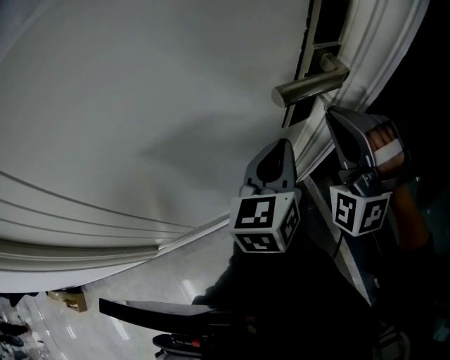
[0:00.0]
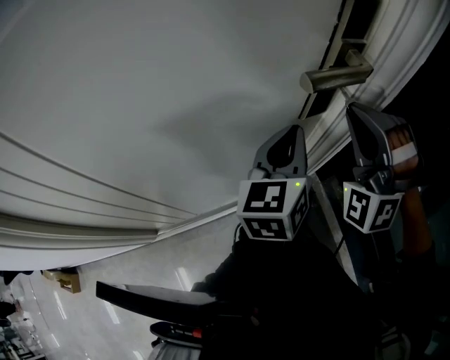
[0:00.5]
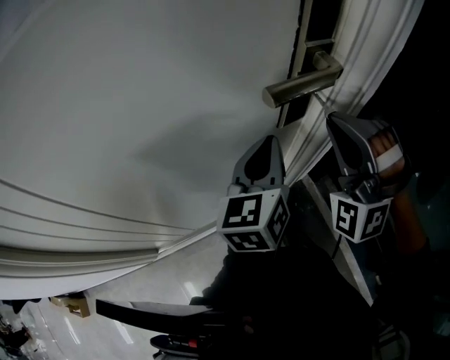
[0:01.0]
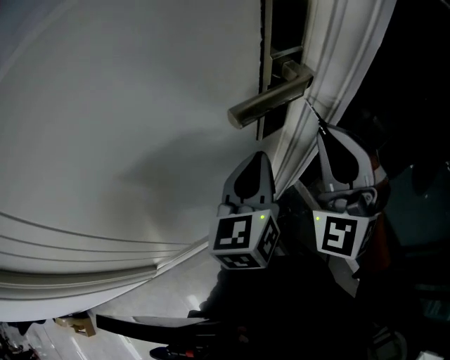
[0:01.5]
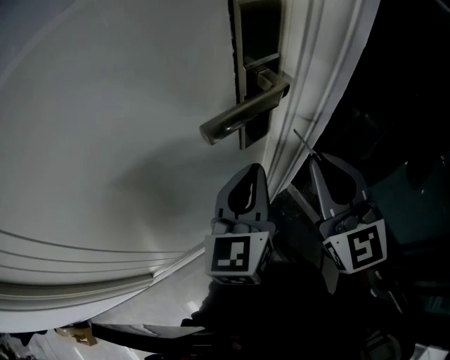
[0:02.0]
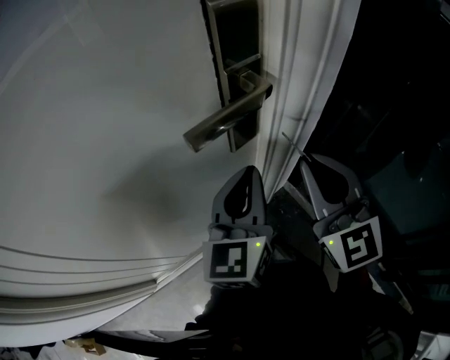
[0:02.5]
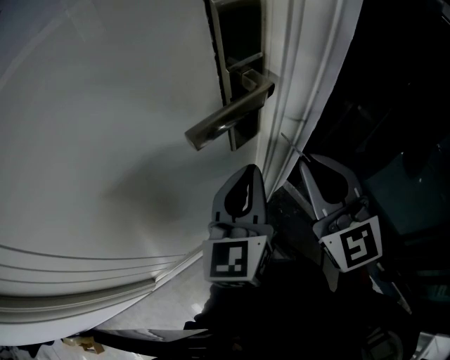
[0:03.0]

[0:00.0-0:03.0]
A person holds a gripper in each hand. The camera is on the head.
0:00.0 to 0:01.5: The right gripper changes its angle by roughly 30 degrees.
0:01.5 to 0:03.0: The right gripper rolls clockwise, seen from behind, by approximately 40 degrees.

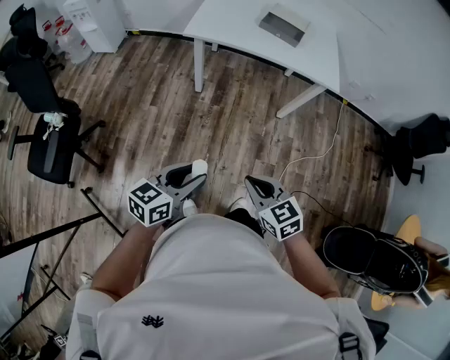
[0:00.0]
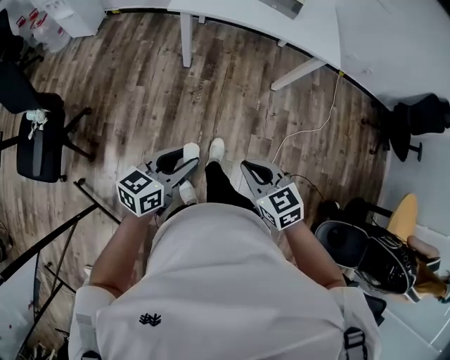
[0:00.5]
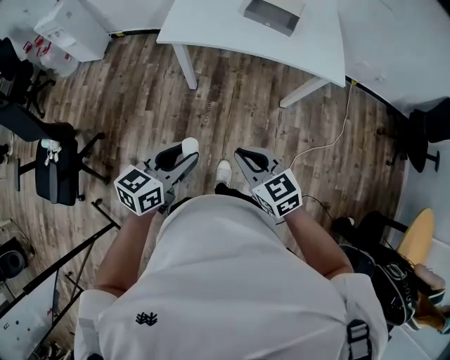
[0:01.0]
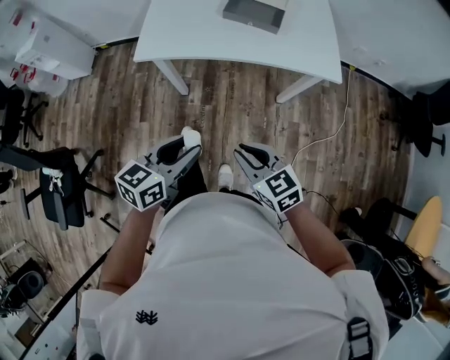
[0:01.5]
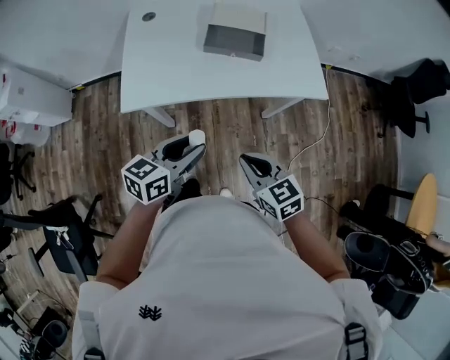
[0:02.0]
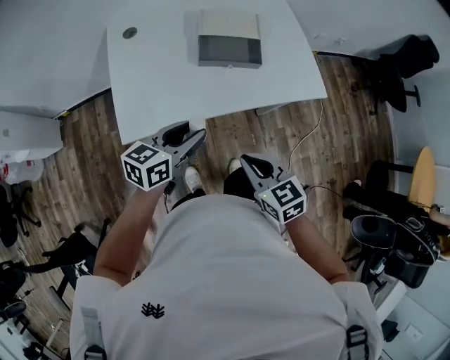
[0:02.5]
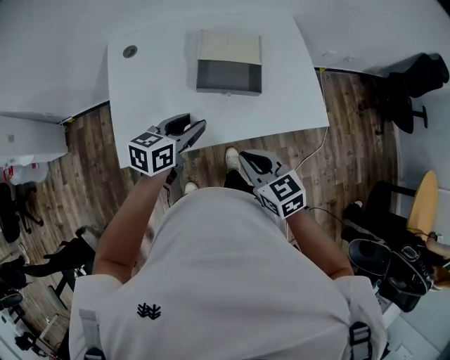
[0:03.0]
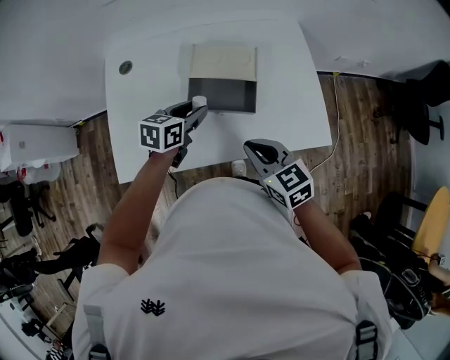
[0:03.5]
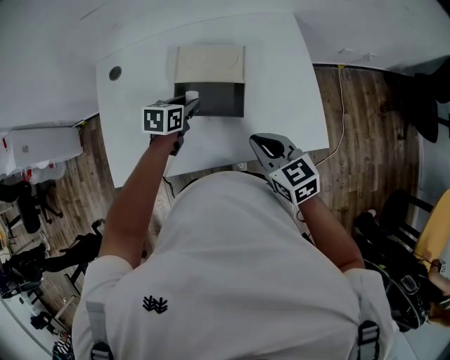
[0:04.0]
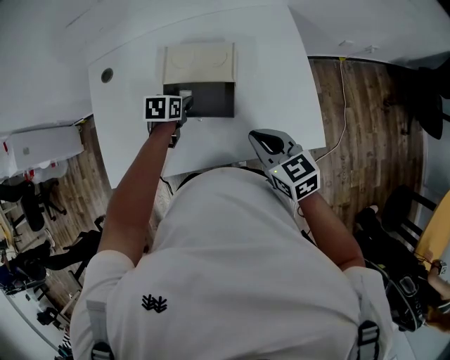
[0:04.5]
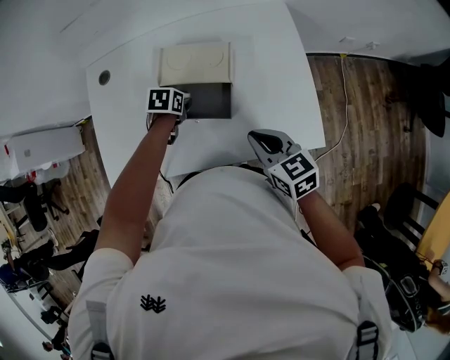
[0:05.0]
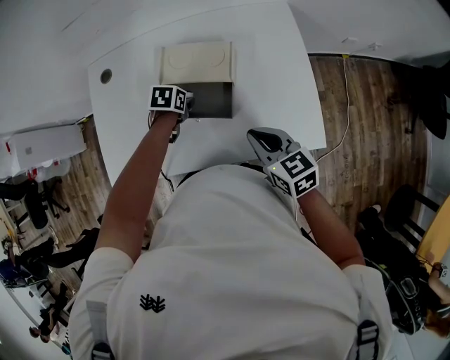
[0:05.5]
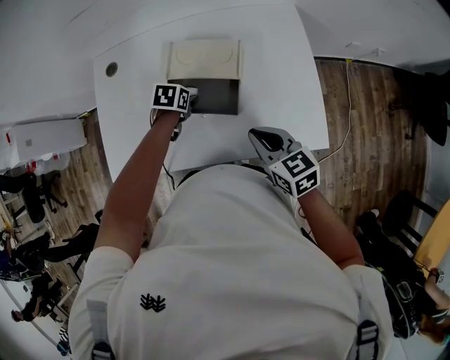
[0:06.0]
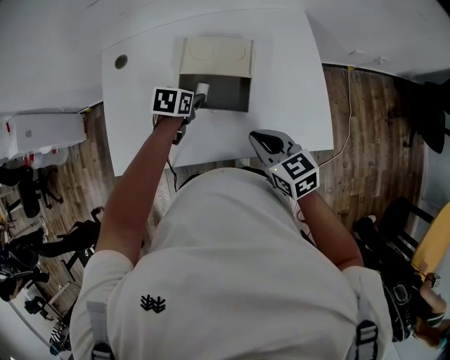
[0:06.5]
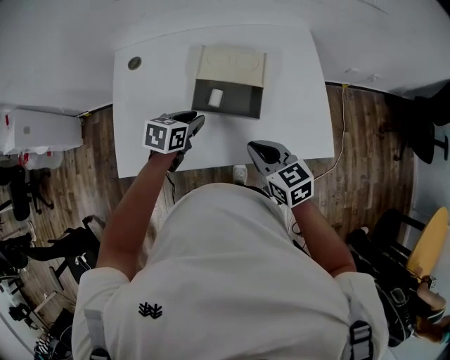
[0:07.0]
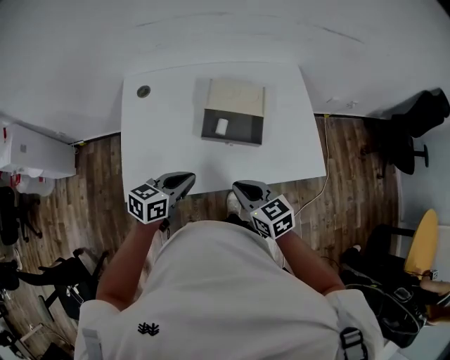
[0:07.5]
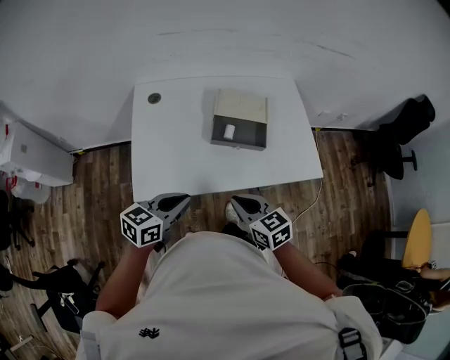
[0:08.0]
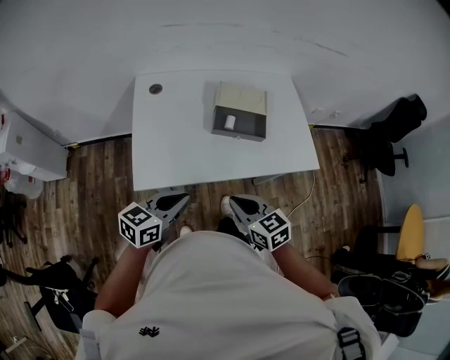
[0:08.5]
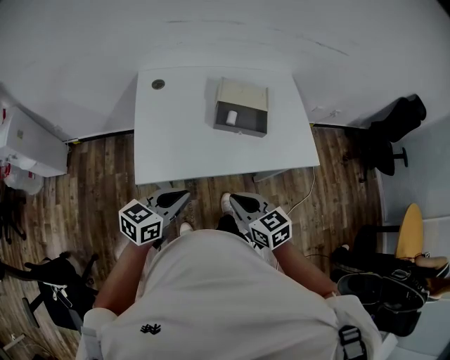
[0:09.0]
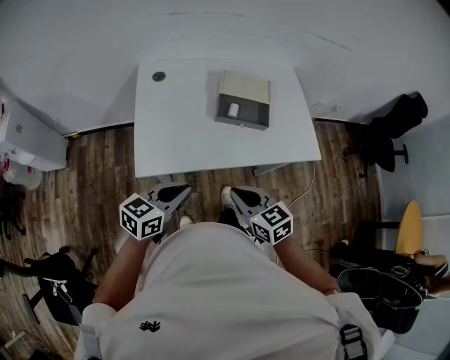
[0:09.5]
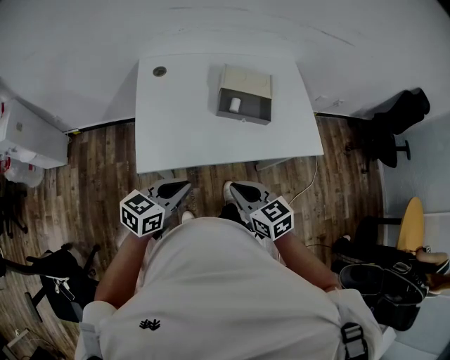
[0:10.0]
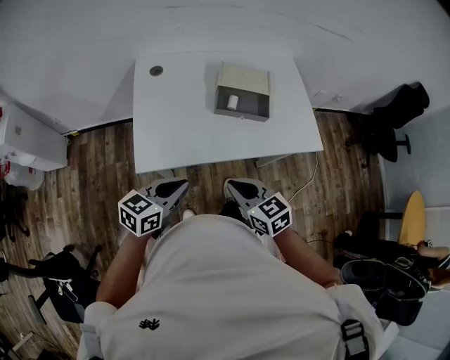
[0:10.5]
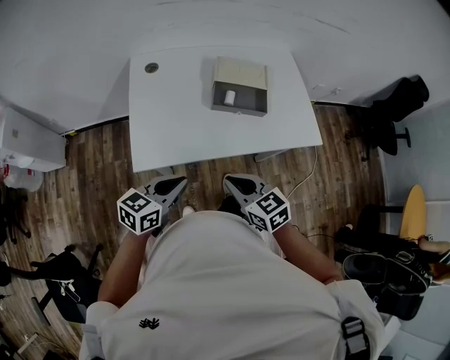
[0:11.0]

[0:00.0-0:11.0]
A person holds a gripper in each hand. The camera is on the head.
0:00.0 to 0:02.0: The grippers both shift forward by roughly 40 cm.
0:02.0 to 0:03.5: Both grippers move forward, about 30 cm.
0:03.5 to 0:05.5: The right gripper shifts some 10 cm to the right. The left gripper is displaced downward and forward by about 15 cm, and tips its fingers downward by about 40 degrees.
0:05.5 to 0:07.5: The left gripper shifts roughly 25 cm backward and upward, points its fingers roughly 50 degrees further upward, and closes; the right gripper travels to the left and backward by some 15 cm.
0:07.5 to 0:09.0: Both grippers move backward and to the left, about 15 cm.
0:09.0 to 0:11.0: The grippers move only a little.

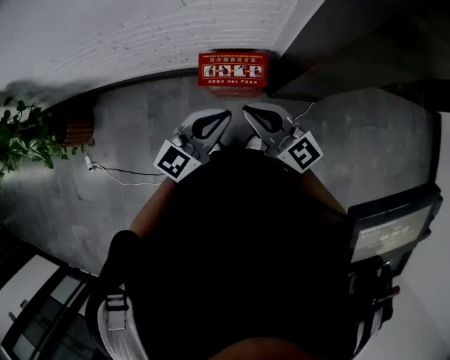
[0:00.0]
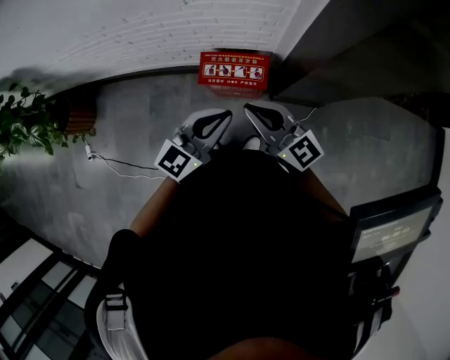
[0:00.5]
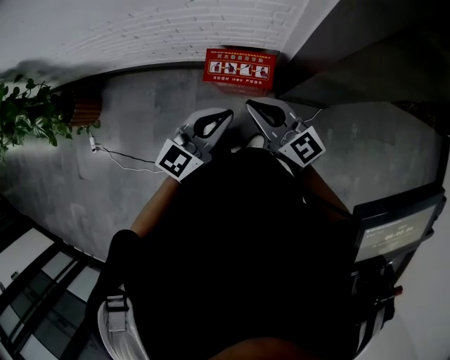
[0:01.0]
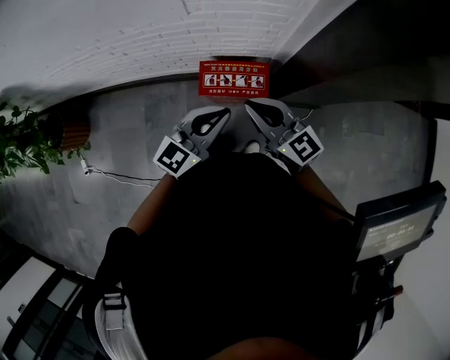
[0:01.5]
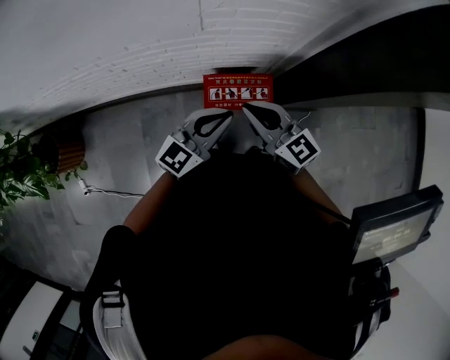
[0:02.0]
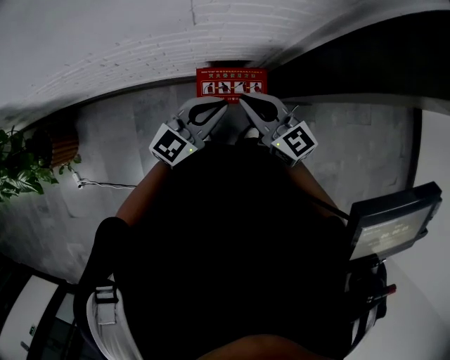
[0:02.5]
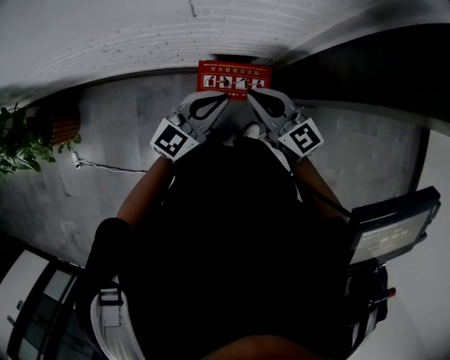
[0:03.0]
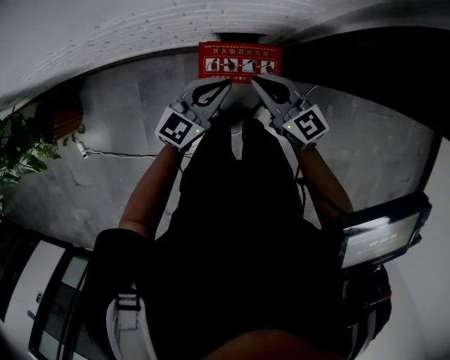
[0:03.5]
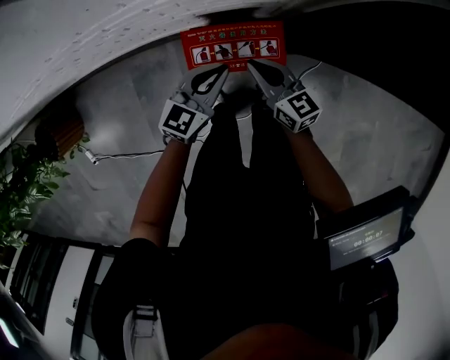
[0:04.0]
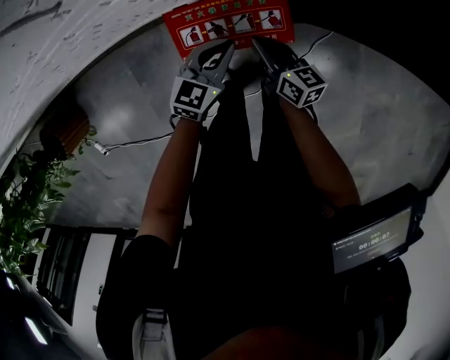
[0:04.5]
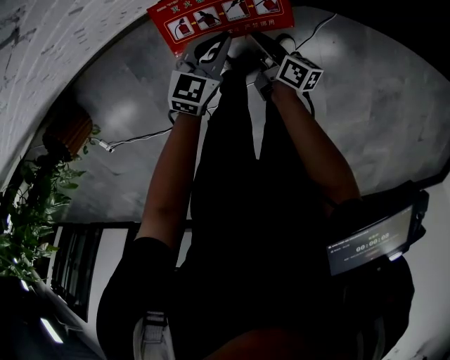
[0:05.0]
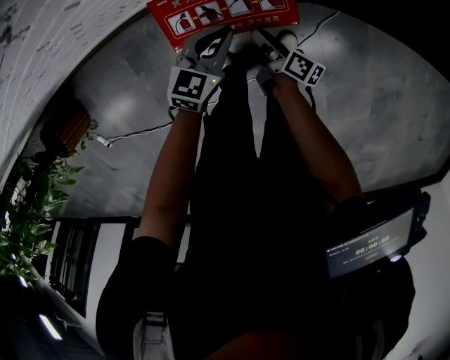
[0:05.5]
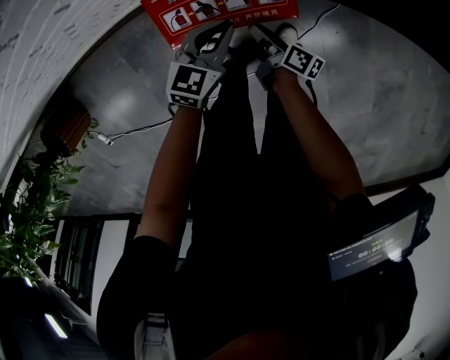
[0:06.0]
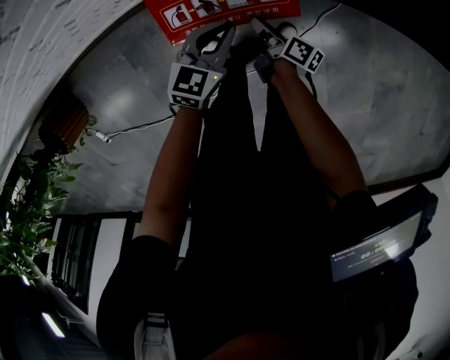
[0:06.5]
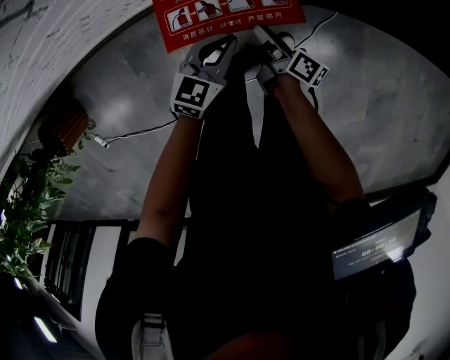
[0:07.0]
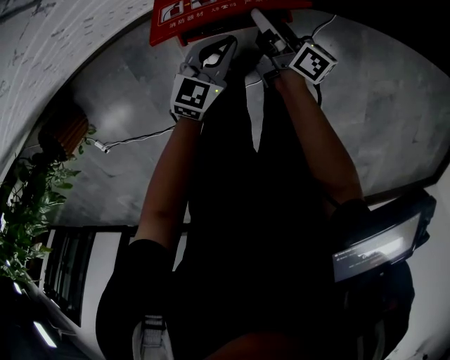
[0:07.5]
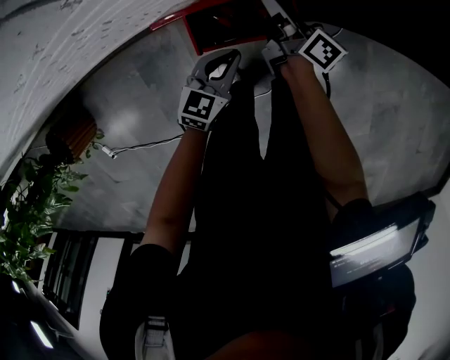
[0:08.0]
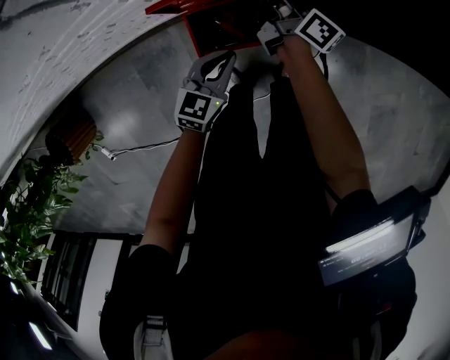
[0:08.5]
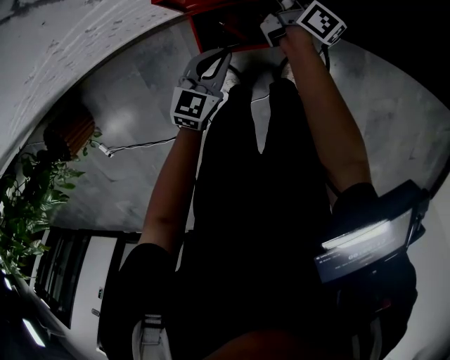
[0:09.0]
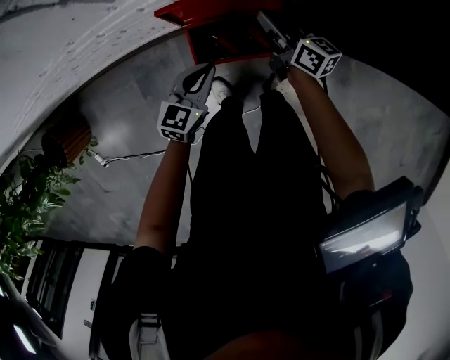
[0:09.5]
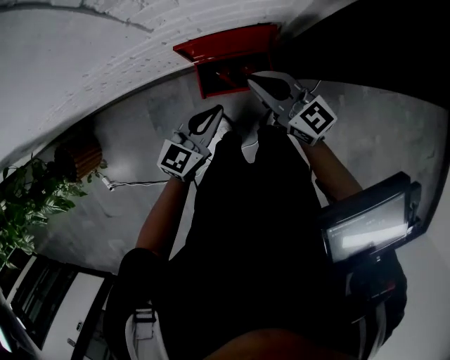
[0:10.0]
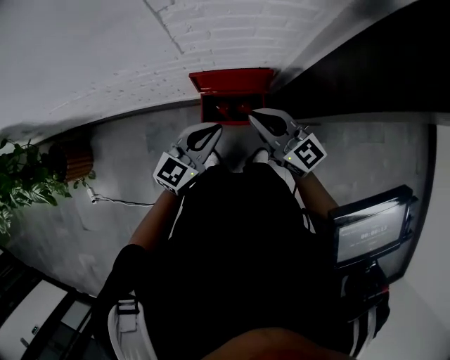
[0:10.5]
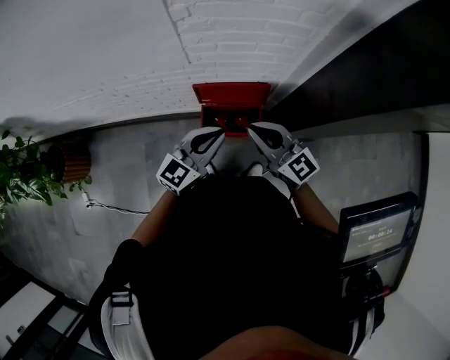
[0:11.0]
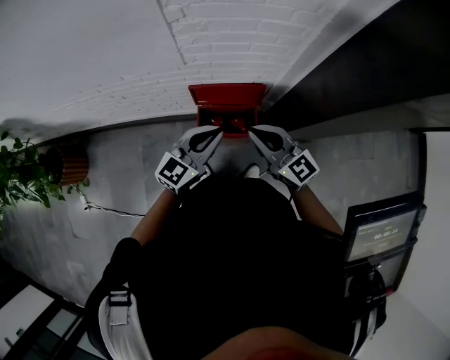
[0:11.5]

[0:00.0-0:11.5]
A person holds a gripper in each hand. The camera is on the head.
0:00.0 to 0:02.0: The grippers both shift forward and to the left by about 15 cm.
0:02.0 to 0:04.0: The grippers both shift downward by about 30 cm. The right gripper rotates approximately 20 degrees.
0:04.0 to 0:06.0: Both grippers travel together downward, about 20 cm. The right gripper rotates around the line of its fingers by roughly 60 degrees, clockwise from behind, and opens its fingers.
0:06.0 to 0:07.5: The left gripper travels upward by some 5 cm. Meanwhile the right gripper heads upward and forward, covering about 20 cm, and turns by roughly 20 degrees.
0:07.5 to 0:09.5: The right gripper is displaced forward and upward by some 10 cm, and rotates about 30 degrees, while the left gripper is displaced to the left and upward by roughly 10 cm.
0:09.5 to 0:11.5: The right gripper moves upward and backward, about 40 cm, and twists approximately 40 degrees counterclockwise, seen from behind. Meanwhile the left gripper shifts about 35 cm upward, and swivels some 30 degrees.

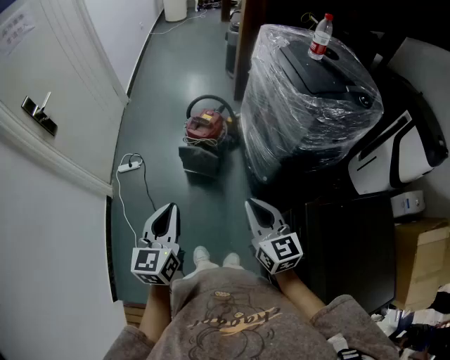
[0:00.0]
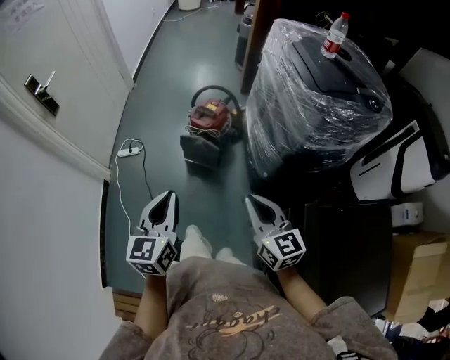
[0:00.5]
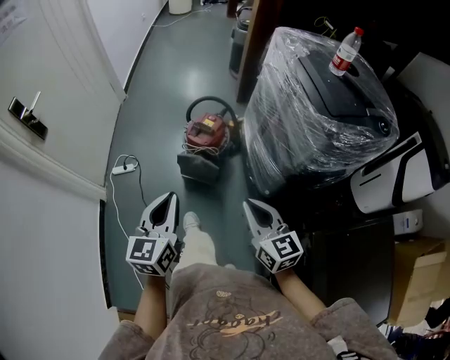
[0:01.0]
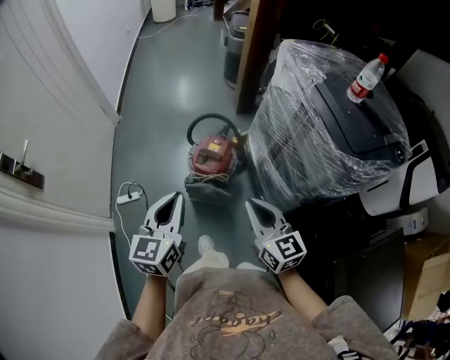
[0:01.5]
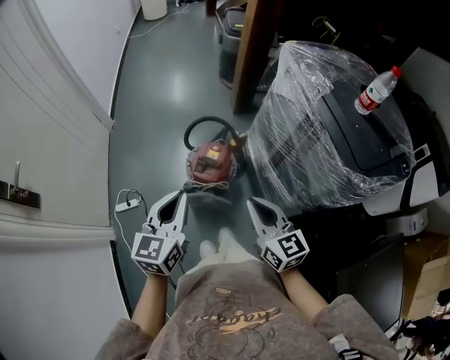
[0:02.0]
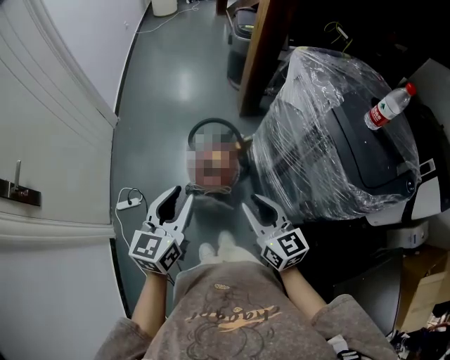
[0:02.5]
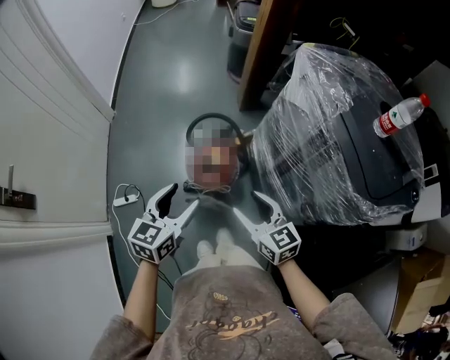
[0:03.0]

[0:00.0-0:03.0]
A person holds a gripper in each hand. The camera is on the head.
0:00.0 to 0:01.5: The grippers both shift forward by roughly 30 cm.
0:01.5 to 0:03.0: Both grippers move forward and downward, approximately 15 cm. The left gripper opens up. Meanwhile the right gripper opens its fingers.
